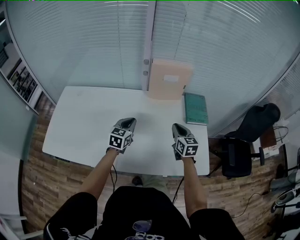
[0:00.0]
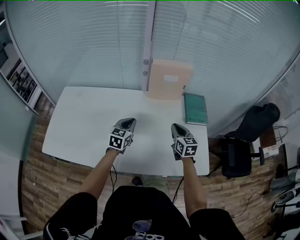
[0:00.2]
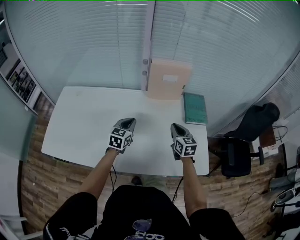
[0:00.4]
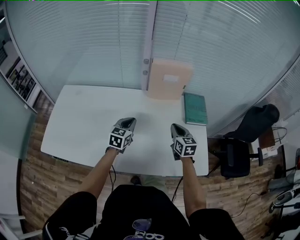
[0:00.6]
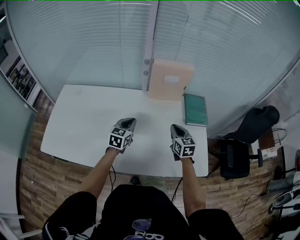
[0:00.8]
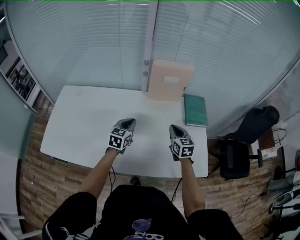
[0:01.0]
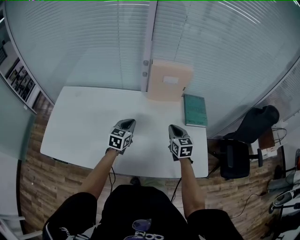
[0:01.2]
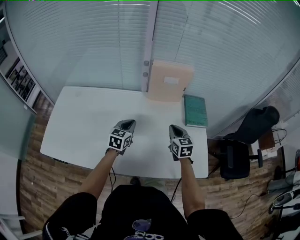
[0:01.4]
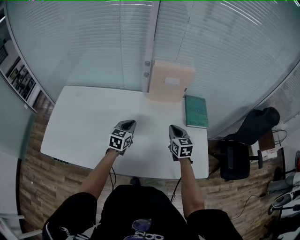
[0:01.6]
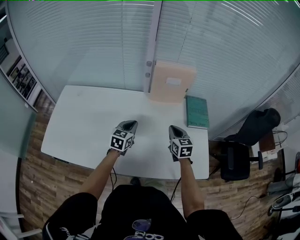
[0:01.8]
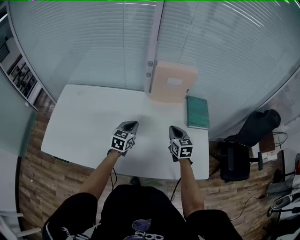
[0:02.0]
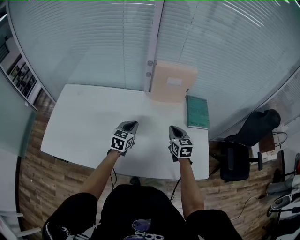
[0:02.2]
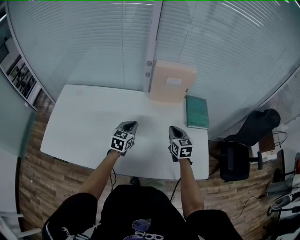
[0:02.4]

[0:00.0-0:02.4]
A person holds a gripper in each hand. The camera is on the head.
0:00.0 to 0:02.4: There are only small adjustments of the grippers.

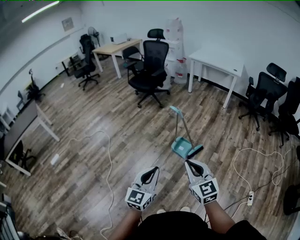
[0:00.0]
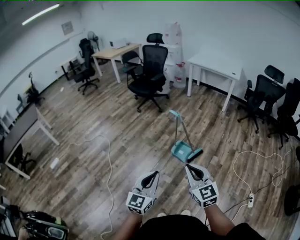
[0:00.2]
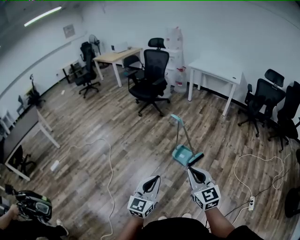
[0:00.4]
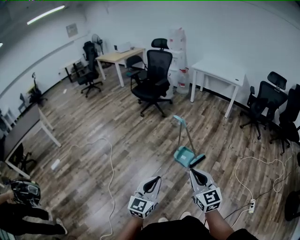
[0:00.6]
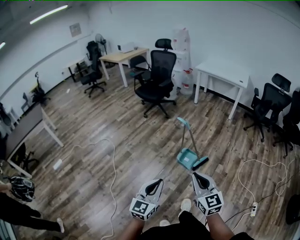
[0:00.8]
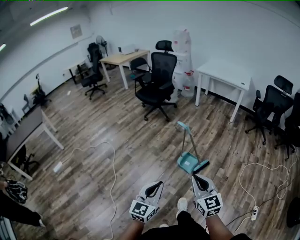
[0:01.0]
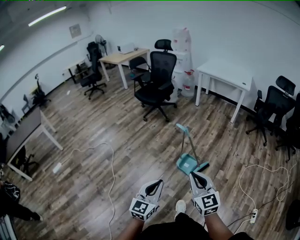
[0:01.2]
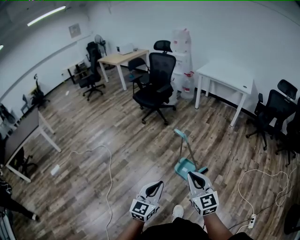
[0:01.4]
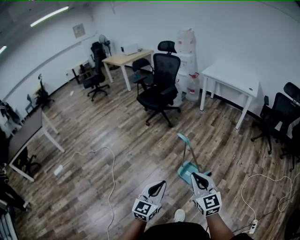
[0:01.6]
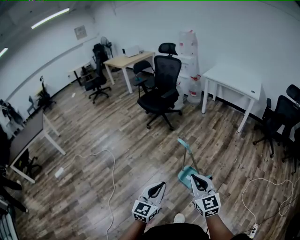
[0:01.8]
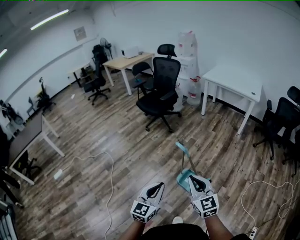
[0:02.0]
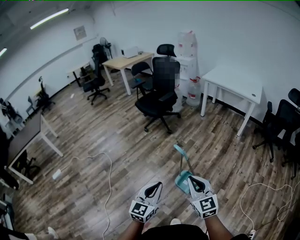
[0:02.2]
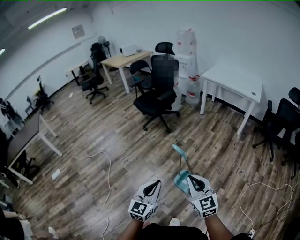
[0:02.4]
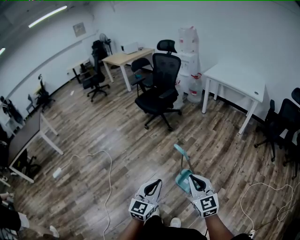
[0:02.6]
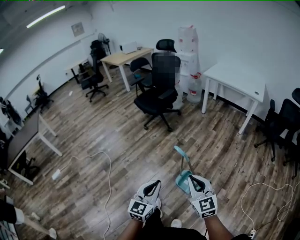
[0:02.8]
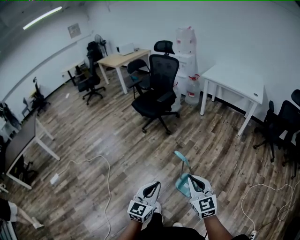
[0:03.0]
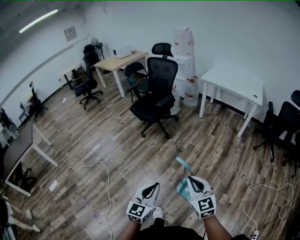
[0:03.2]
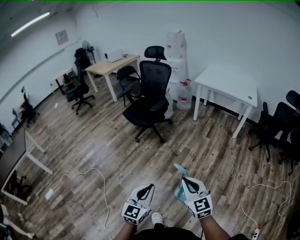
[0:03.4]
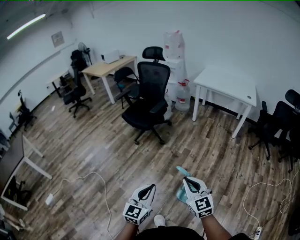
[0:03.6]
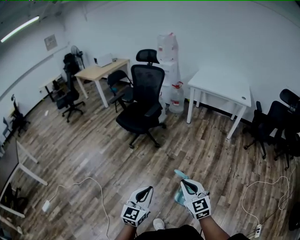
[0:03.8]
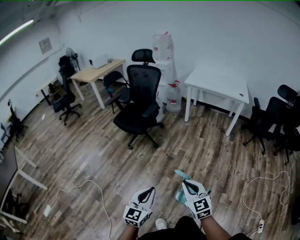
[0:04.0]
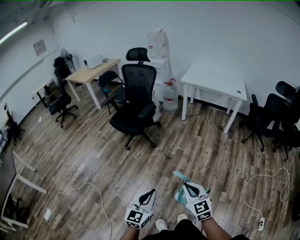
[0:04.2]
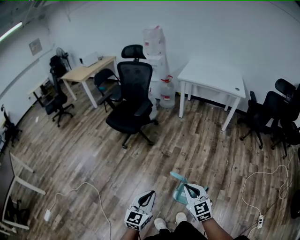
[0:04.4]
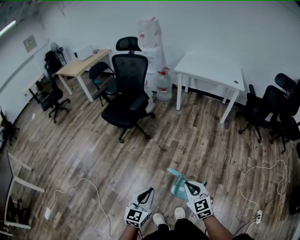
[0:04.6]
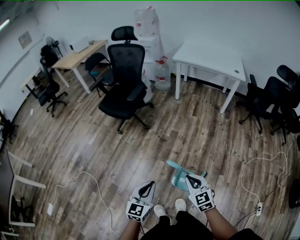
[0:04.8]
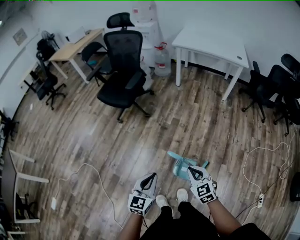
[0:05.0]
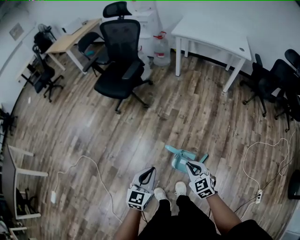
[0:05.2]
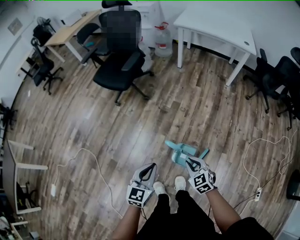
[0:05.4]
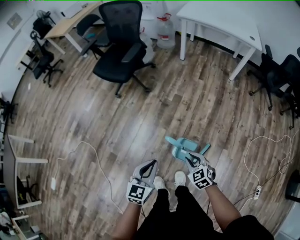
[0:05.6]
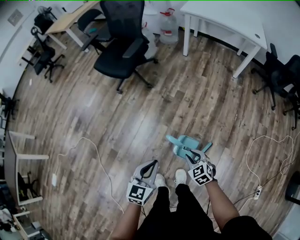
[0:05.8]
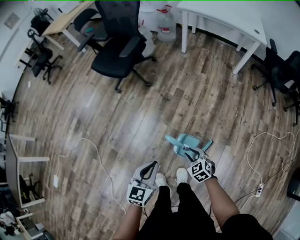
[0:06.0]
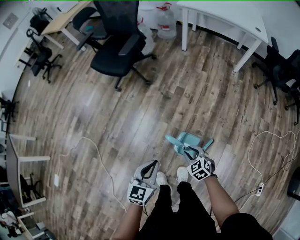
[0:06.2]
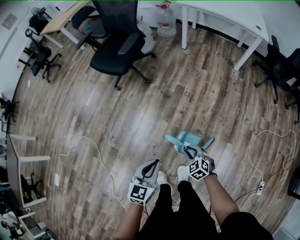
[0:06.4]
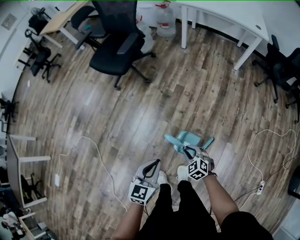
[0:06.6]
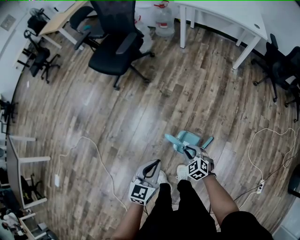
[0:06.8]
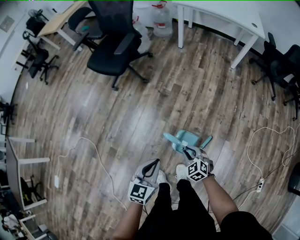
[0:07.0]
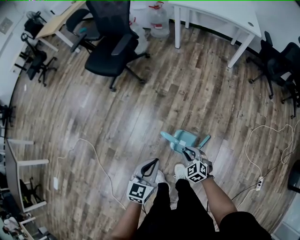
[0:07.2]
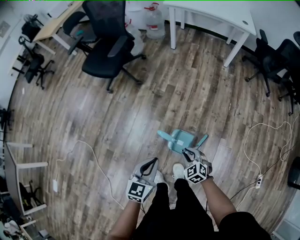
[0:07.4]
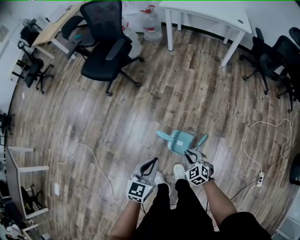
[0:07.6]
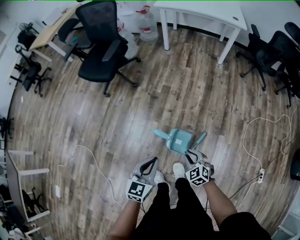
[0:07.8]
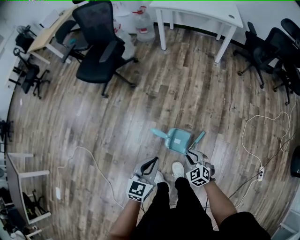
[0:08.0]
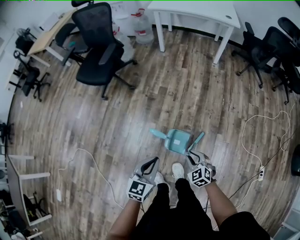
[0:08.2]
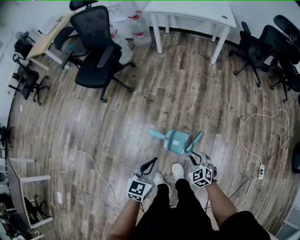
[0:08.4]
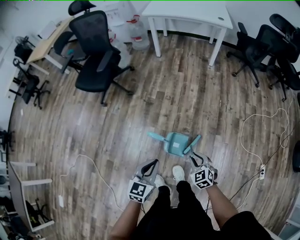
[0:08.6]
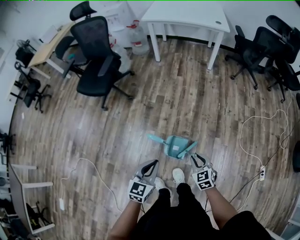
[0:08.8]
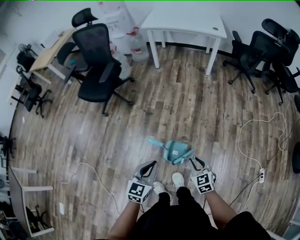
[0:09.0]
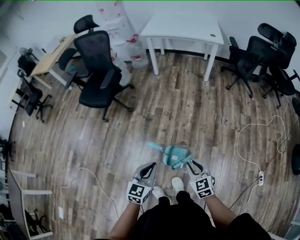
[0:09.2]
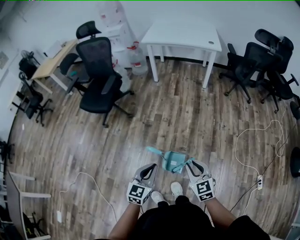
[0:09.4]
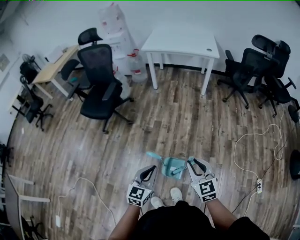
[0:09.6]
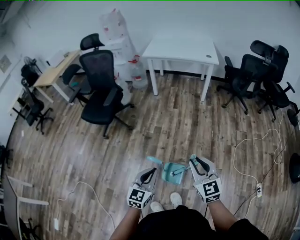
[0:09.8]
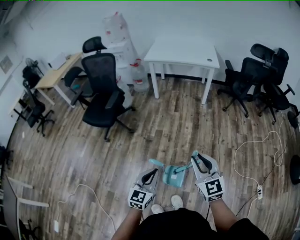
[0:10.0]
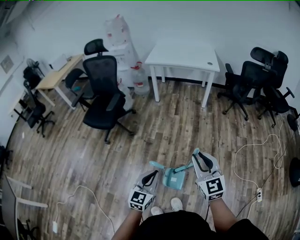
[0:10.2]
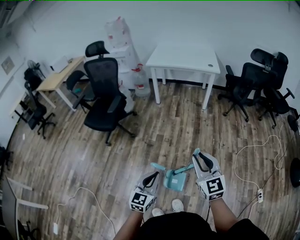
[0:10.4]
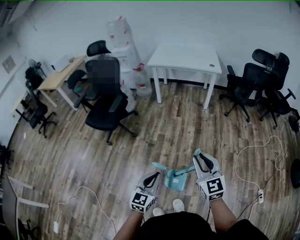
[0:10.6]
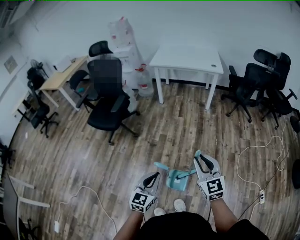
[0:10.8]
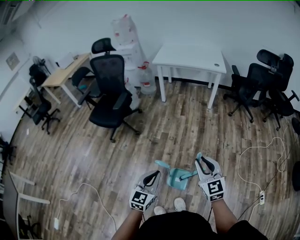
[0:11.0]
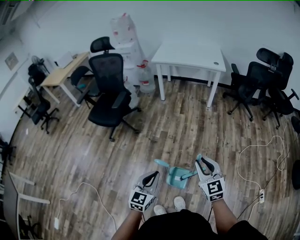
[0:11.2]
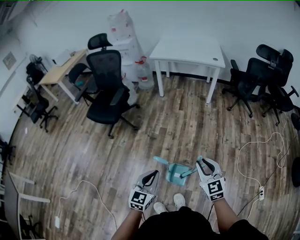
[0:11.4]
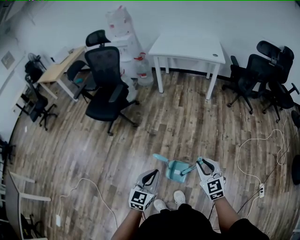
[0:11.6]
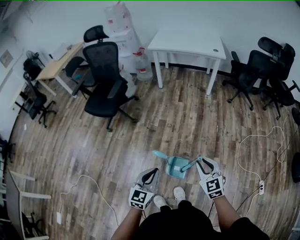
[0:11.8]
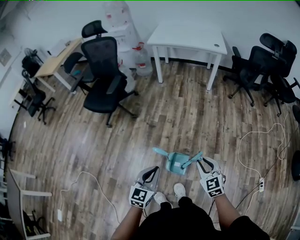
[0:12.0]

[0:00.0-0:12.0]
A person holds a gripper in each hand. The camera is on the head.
0:00.0 to 0:01.6: The two grippers go roughly 20 cm forward.
0:01.6 to 0:03.0: Both grippers move forward, some 15 cm.
0:03.0 to 0:04.4: The left gripper heads forward and to the left, covering about 15 cm; the right gripper heads forward and downward, covering some 15 cm.
0:04.4 to 0:06.0: The left gripper moves downward, to the right and forward, approximately 10 cm. The right gripper goes approximately 25 cm downward, tilts its fingers roughly 30 degrees downward, and opens up.
0:06.0 to 0:07.6: The right gripper shifts by about 5 cm.
0:07.6 to 0:09.0: The right gripper goes some 10 cm upward and to the right, and changes its angle by about 30 degrees; the left gripper ends up roughly 5 cm from where it was.
0:09.0 to 0:10.4: The right gripper goes roughly 25 cm upward, and turns by approximately 30 degrees; the left gripper moves upward, some 5 cm.
0:10.4 to 0:12.0: The right gripper shifts about 15 cm downward, and swivels about 20 degrees.

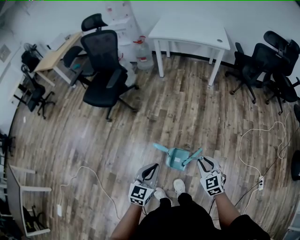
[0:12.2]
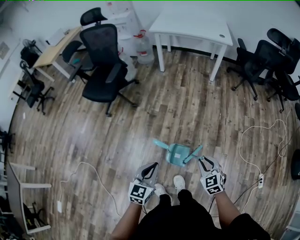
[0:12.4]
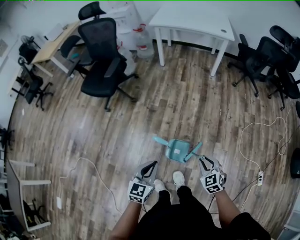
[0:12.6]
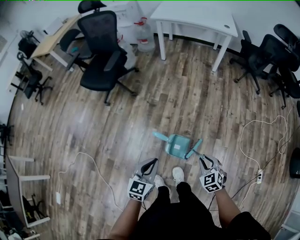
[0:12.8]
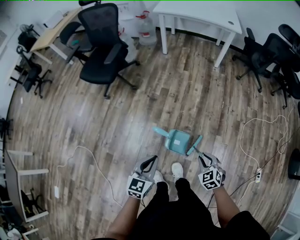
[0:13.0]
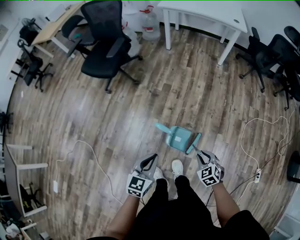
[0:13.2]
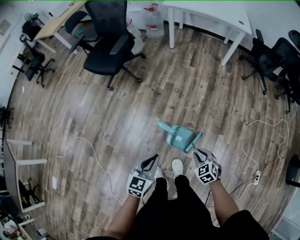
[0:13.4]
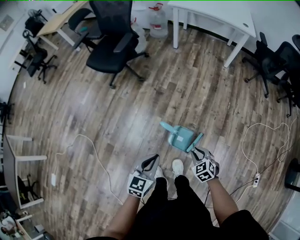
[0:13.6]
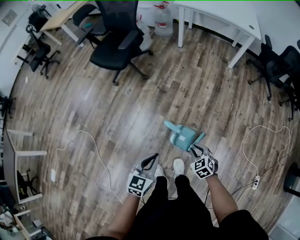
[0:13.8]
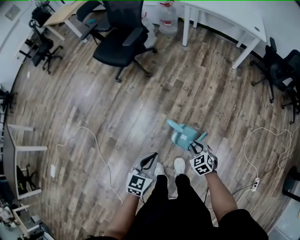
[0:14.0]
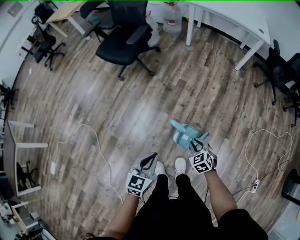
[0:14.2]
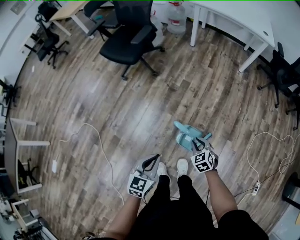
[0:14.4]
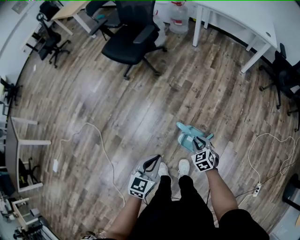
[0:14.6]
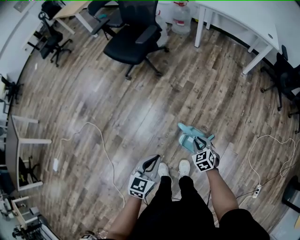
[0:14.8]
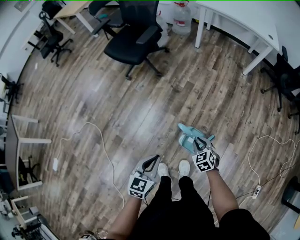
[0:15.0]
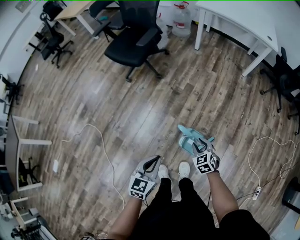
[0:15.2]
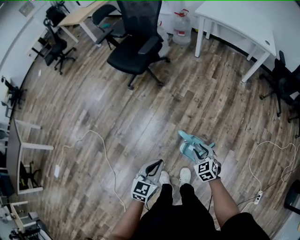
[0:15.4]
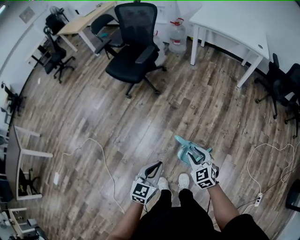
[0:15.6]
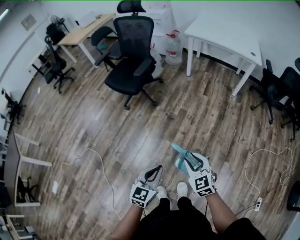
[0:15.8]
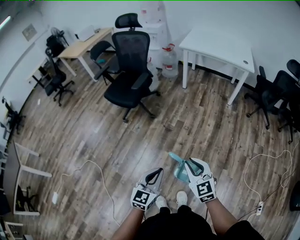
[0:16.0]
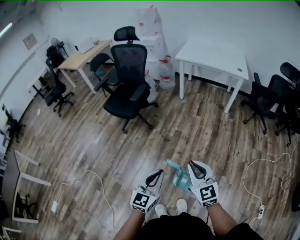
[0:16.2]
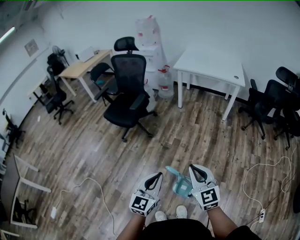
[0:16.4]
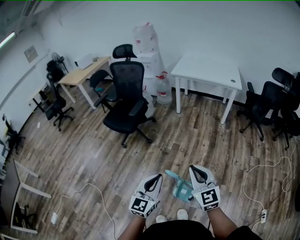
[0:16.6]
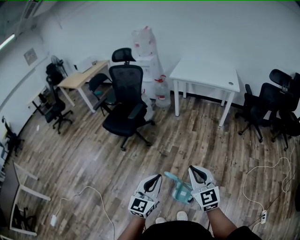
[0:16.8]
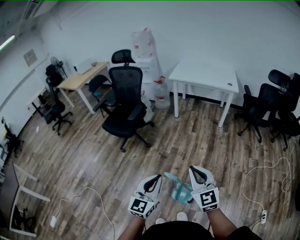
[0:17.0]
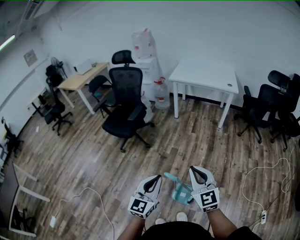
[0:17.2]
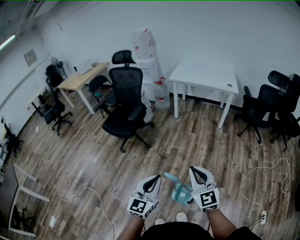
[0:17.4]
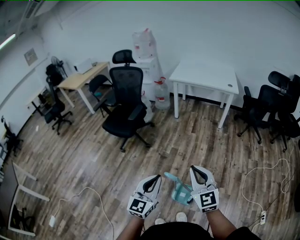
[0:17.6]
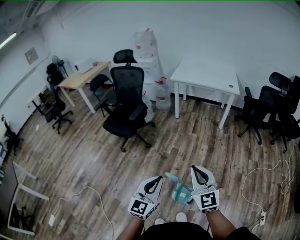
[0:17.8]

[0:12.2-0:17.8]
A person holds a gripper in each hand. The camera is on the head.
0:12.2 to 0:13.6: The right gripper moves downward, some 15 cm, and changes its angle by approximately 20 degrees, while the left gripper goes roughly 5 cm downward.
0:13.6 to 0:15.0: The right gripper travels forward and to the left by roughly 10 cm, while the left gripper is displaced to the left by some 5 cm.
0:15.0 to 0:16.4: The left gripper goes roughly 15 cm upward, and swivels about 30 degrees; the right gripper is displaced upward by approximately 35 cm, and tips its fingers upward by about 40 degrees.
0:16.4 to 0:17.8: The grippers stay close to where they were, moving slightly.

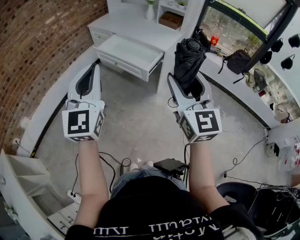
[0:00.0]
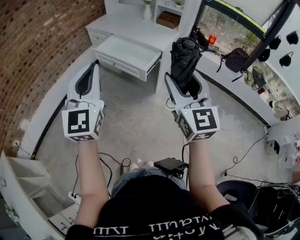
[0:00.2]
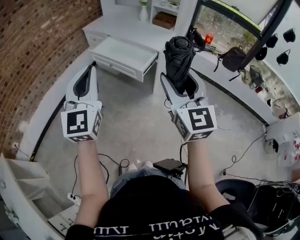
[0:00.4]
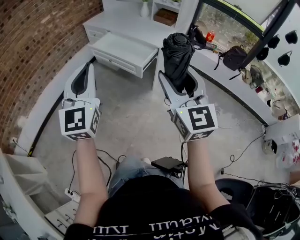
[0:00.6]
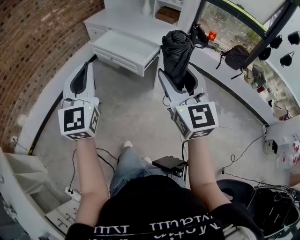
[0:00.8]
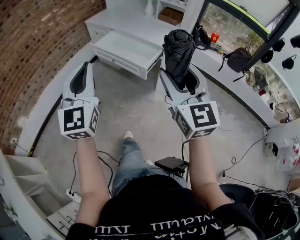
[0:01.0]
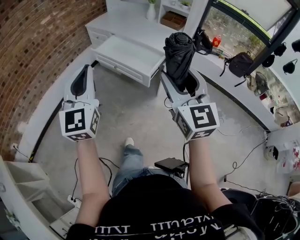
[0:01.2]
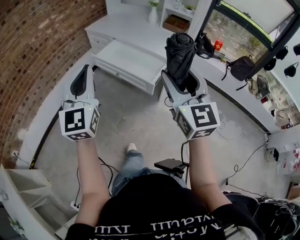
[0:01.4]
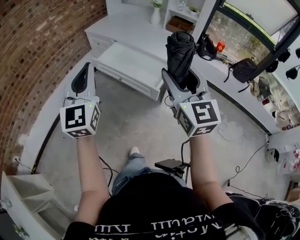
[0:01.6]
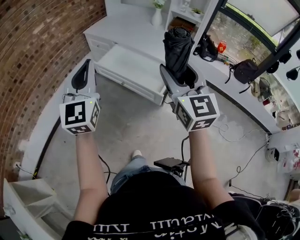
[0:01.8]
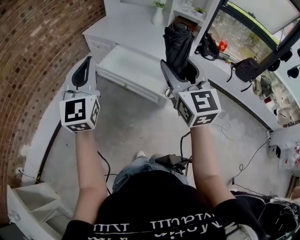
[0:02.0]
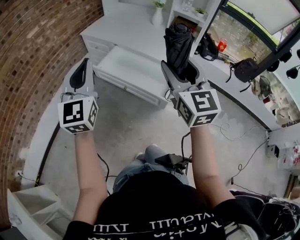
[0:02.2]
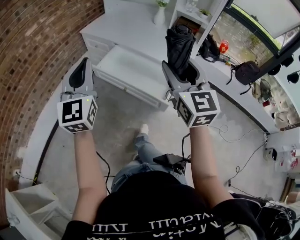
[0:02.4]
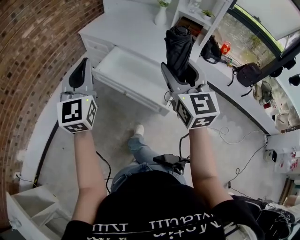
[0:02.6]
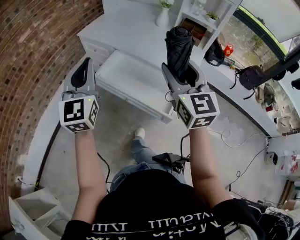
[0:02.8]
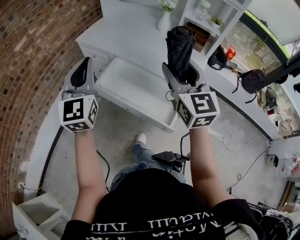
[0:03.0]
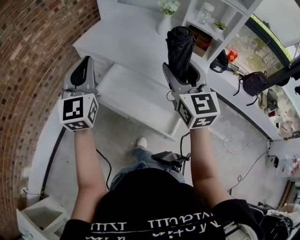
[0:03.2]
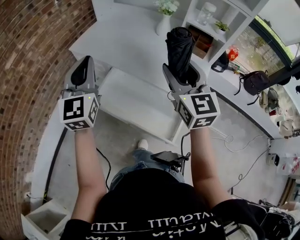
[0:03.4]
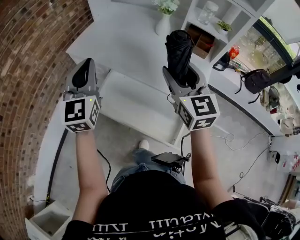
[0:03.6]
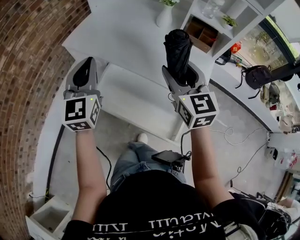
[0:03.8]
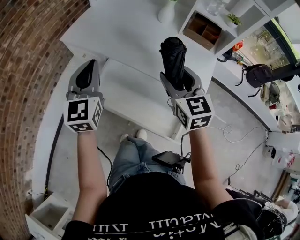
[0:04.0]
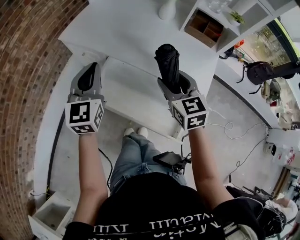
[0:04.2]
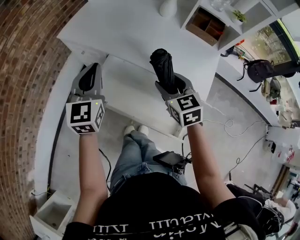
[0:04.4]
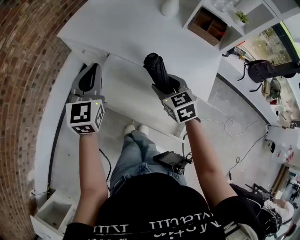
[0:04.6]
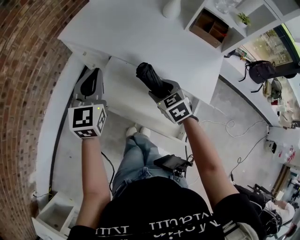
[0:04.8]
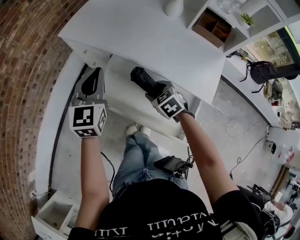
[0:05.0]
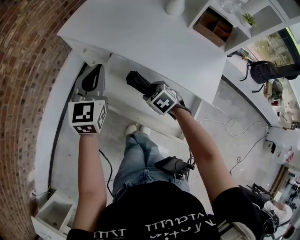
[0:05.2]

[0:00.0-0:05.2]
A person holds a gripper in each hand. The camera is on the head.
0:00.0 to 0:01.8: The two grippers go roughly 25 cm forward.
0:01.8 to 0:03.4: Both grippers travel together forward, about 35 cm.
0:03.4 to 0:05.2: The left gripper travels downward and forward by roughly 20 cm, and changes its angle by some 20 degrees, while the right gripper heads downward, covering roughly 35 cm, and points its fingers some 60 degrees further downward.
